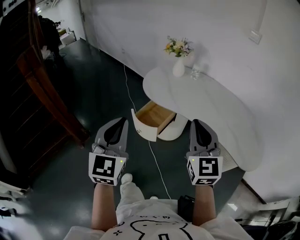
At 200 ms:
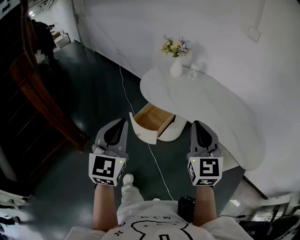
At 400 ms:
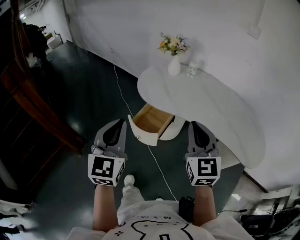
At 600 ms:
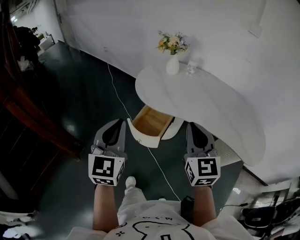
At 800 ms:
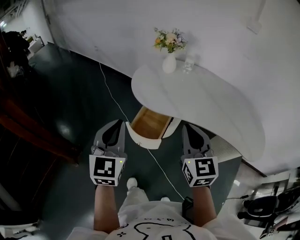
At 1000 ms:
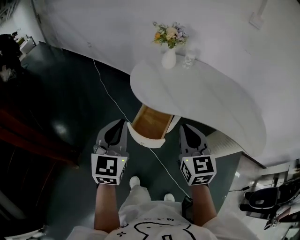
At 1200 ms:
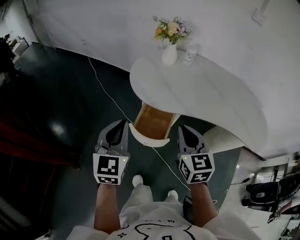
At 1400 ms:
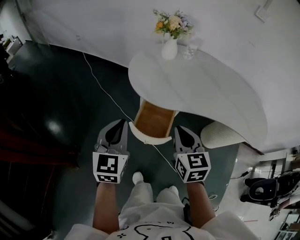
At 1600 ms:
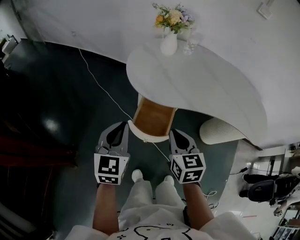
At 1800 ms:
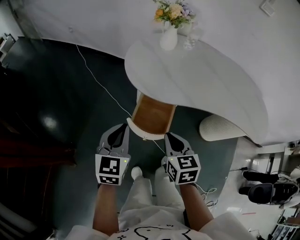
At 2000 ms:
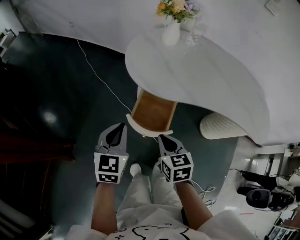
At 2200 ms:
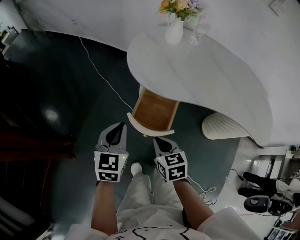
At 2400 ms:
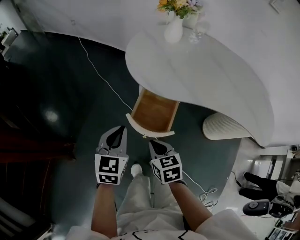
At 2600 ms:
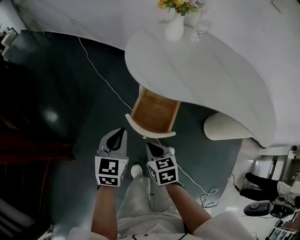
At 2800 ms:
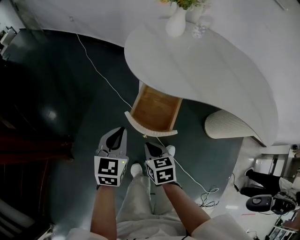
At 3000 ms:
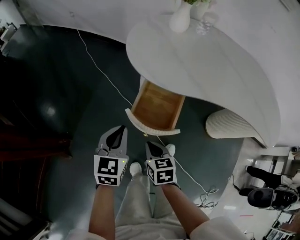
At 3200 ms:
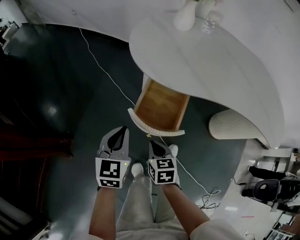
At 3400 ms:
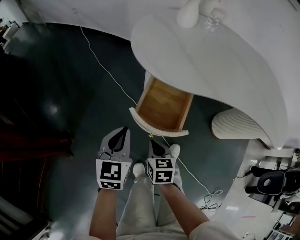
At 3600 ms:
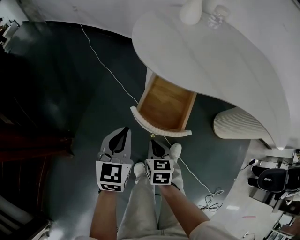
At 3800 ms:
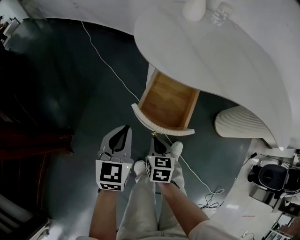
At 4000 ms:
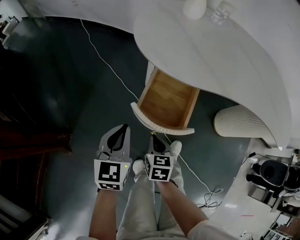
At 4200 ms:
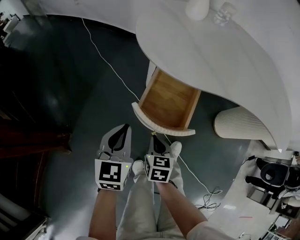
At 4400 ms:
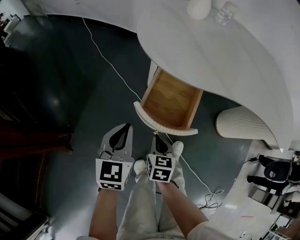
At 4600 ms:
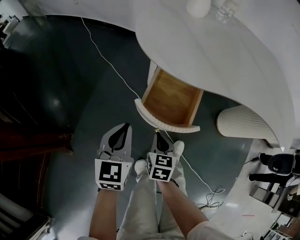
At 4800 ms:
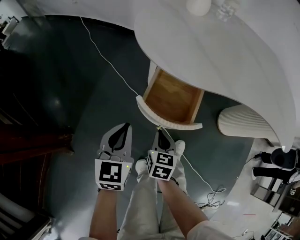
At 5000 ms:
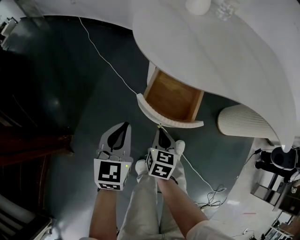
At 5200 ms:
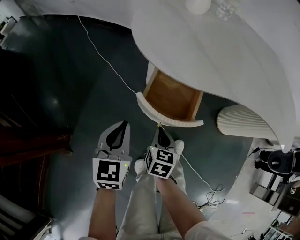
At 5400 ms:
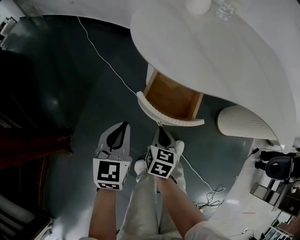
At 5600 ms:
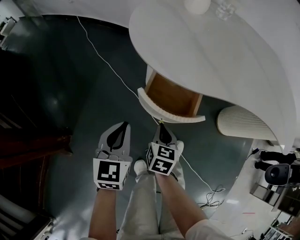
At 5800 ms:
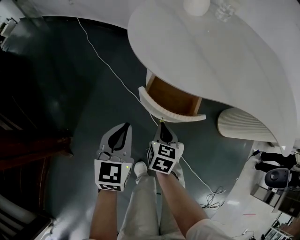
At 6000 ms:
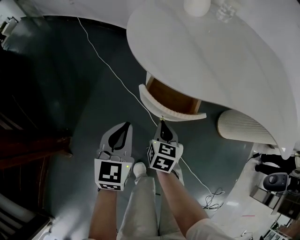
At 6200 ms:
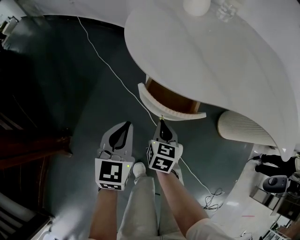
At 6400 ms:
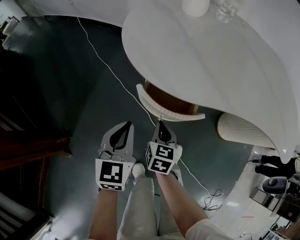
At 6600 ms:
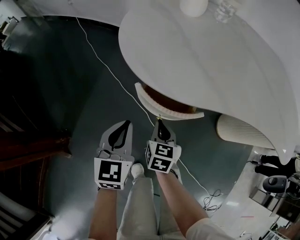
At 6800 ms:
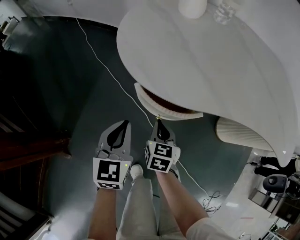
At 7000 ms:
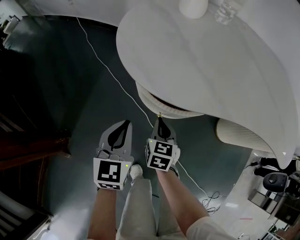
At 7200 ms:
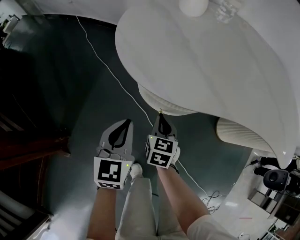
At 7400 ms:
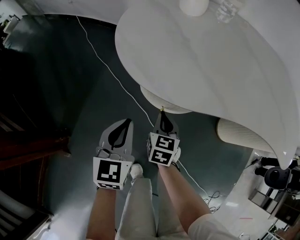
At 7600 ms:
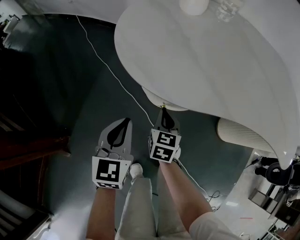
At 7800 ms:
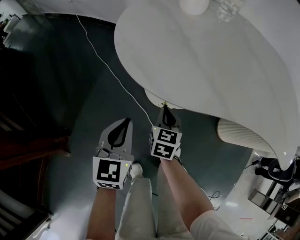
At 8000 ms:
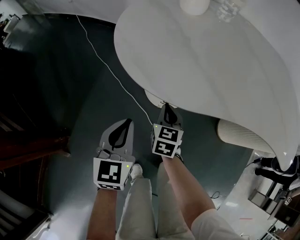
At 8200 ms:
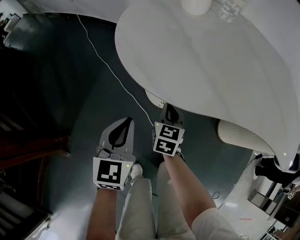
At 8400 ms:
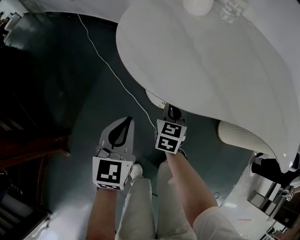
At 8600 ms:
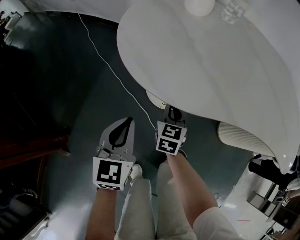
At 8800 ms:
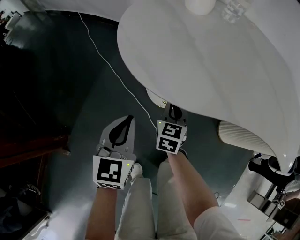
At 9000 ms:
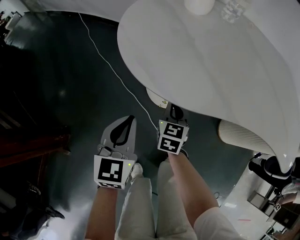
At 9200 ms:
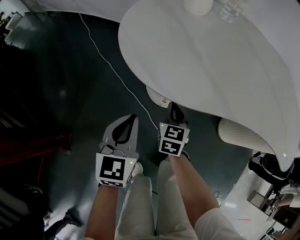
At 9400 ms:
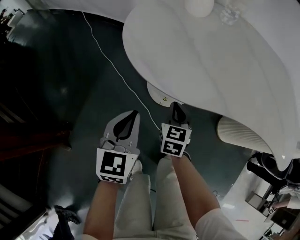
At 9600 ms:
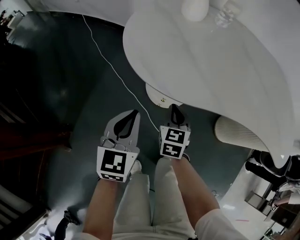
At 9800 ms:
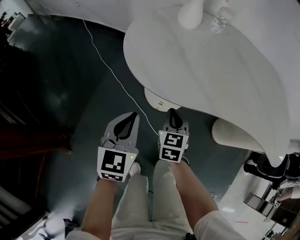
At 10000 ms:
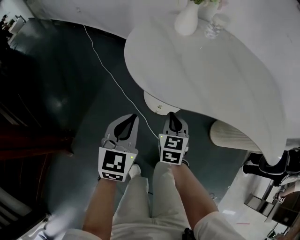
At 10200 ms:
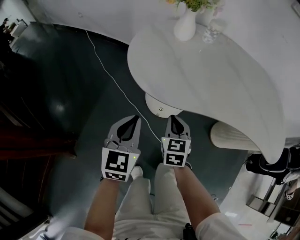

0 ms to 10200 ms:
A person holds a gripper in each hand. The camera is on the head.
0 ms to 1400 ms: The right gripper shifts some 30 cm to the left, forward and downward, and swivels about 30 degrees. The left gripper travels forward, to the left and downward by about 35 cm, and changes its angle by roughly 30 degrees.
1400 ms to 3000 ms: Both grippers travel together downward, about 25 cm. The right gripper turns by roughly 30 degrees.
3000 ms to 4400 ms: The right gripper goes roughly 10 cm downward, while the left gripper is displaced downward by about 5 cm.
4400 ms to 5800 ms: The right gripper moves forward, about 10 cm.
5800 ms to 7200 ms: The two grippers go about 5 cm forward.
7200 ms to 8800 ms: The right gripper is displaced forward by about 5 cm.
8800 ms to 10200 ms: The right gripper is displaced upward and backward by about 15 cm. Meanwhile the left gripper goes approximately 10 cm upward.

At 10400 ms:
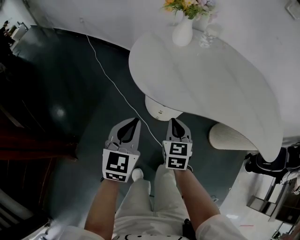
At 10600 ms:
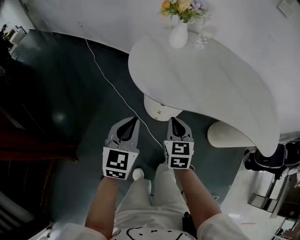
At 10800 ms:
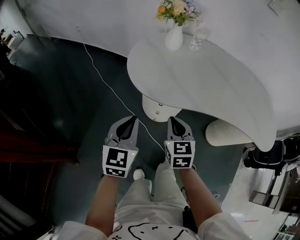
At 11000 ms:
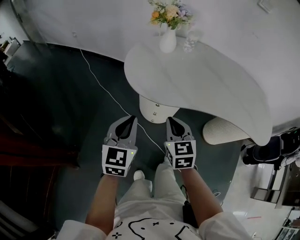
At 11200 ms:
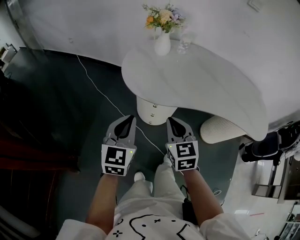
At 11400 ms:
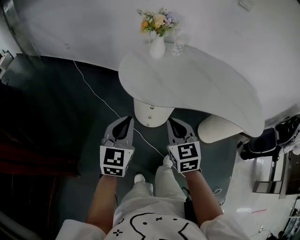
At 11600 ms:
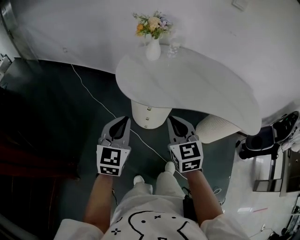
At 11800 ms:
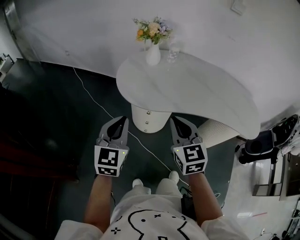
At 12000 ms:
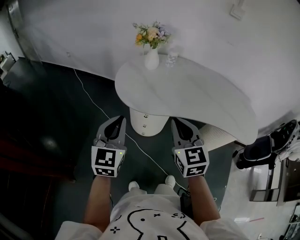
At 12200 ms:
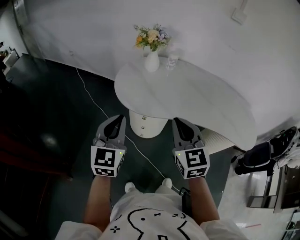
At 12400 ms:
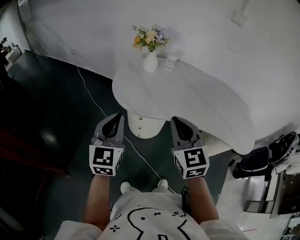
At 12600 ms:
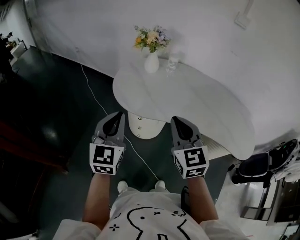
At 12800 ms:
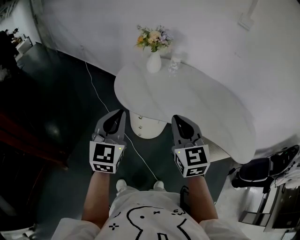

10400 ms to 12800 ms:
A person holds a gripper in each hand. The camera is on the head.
10400 ms to 11600 ms: The left gripper shifts some 10 cm upward and backward. Meanwhile the right gripper goes about 20 cm upward and backward.
11600 ms to 12800 ms: Both grippers move to the right and upward, approximately 15 cm.

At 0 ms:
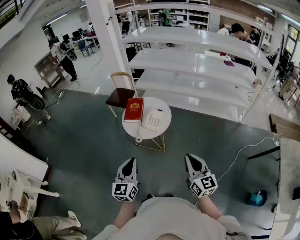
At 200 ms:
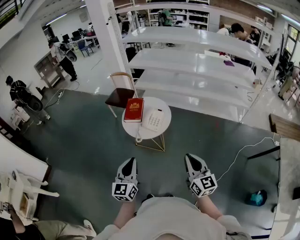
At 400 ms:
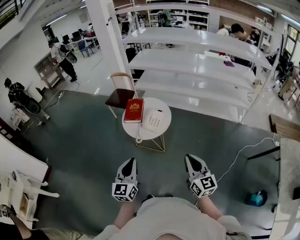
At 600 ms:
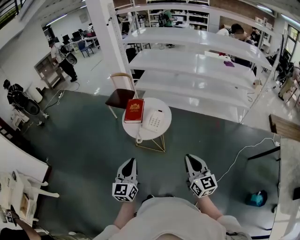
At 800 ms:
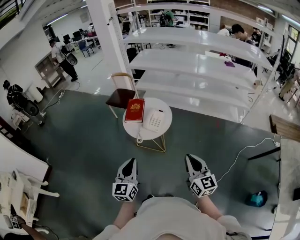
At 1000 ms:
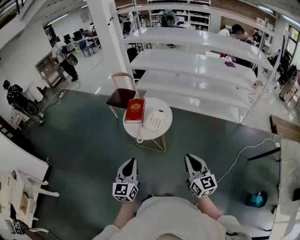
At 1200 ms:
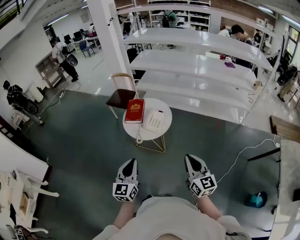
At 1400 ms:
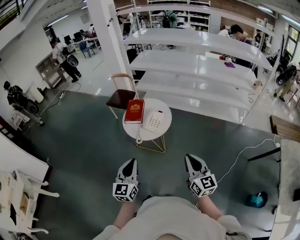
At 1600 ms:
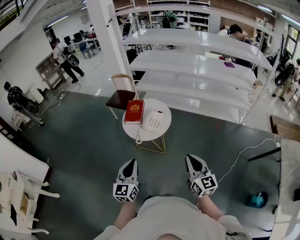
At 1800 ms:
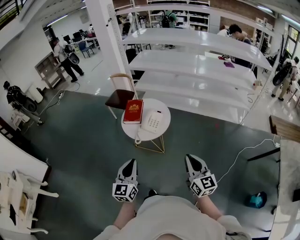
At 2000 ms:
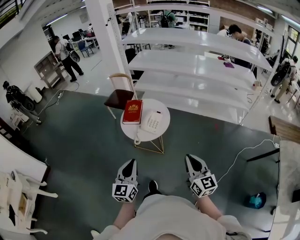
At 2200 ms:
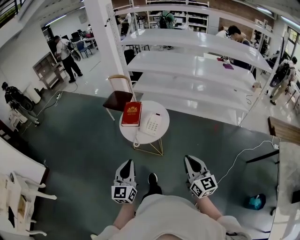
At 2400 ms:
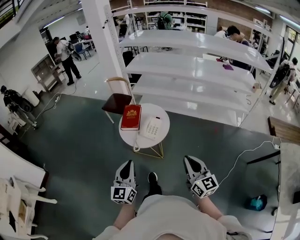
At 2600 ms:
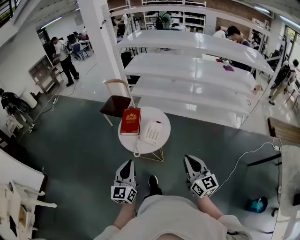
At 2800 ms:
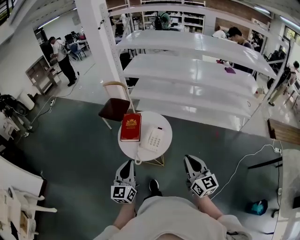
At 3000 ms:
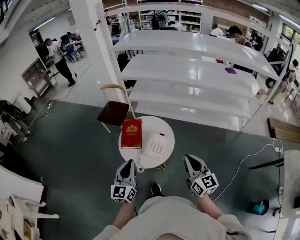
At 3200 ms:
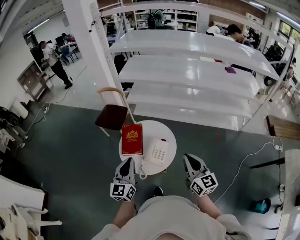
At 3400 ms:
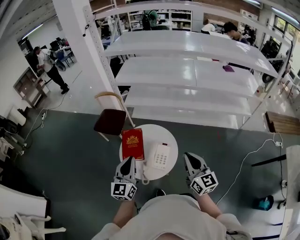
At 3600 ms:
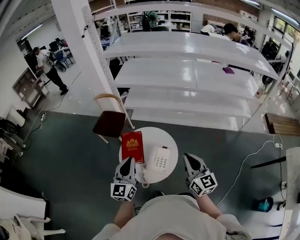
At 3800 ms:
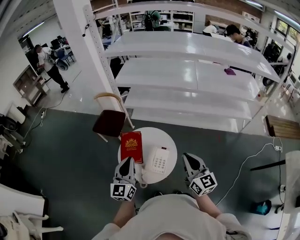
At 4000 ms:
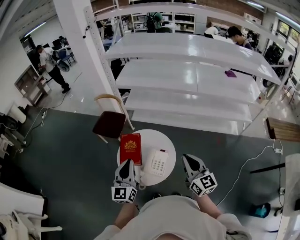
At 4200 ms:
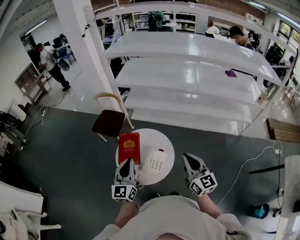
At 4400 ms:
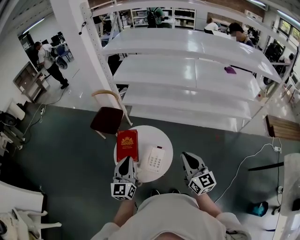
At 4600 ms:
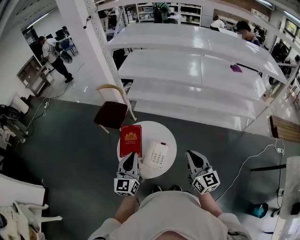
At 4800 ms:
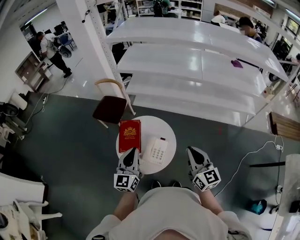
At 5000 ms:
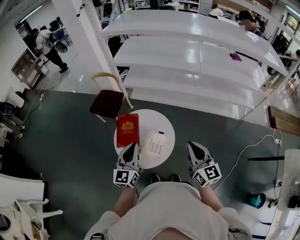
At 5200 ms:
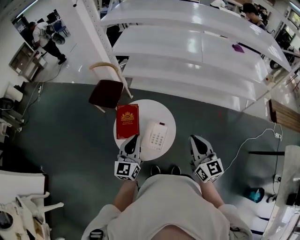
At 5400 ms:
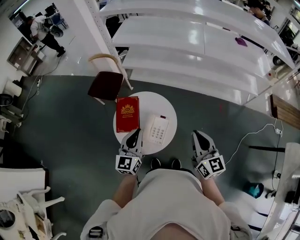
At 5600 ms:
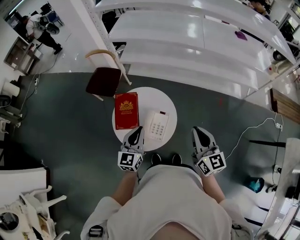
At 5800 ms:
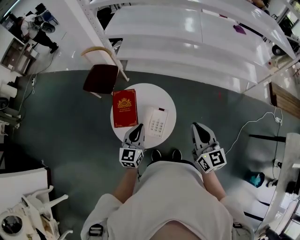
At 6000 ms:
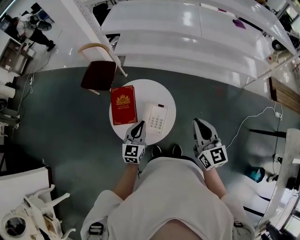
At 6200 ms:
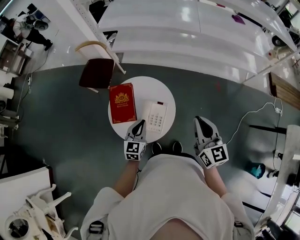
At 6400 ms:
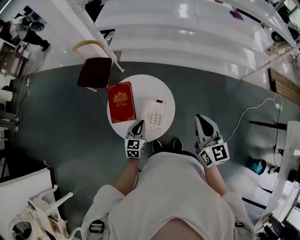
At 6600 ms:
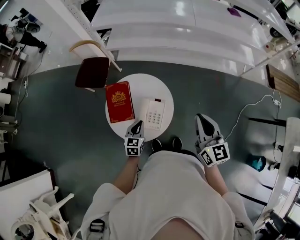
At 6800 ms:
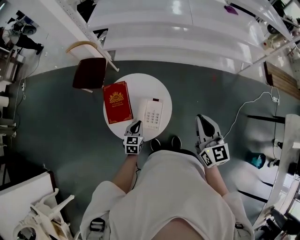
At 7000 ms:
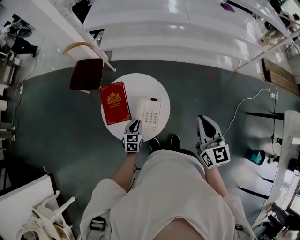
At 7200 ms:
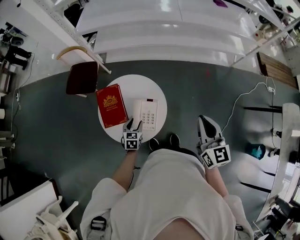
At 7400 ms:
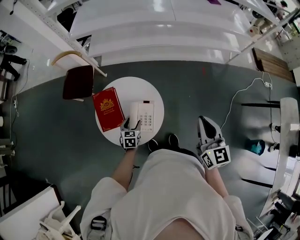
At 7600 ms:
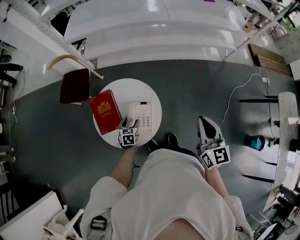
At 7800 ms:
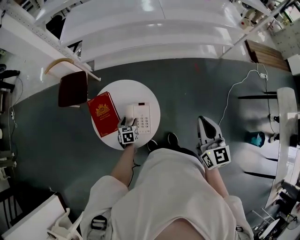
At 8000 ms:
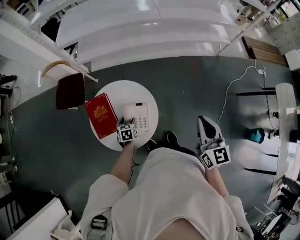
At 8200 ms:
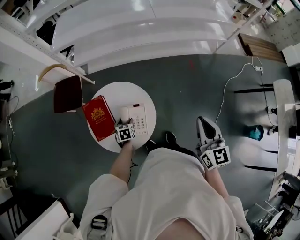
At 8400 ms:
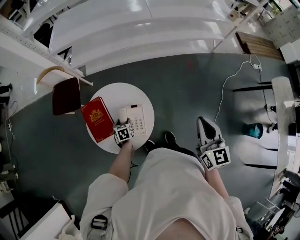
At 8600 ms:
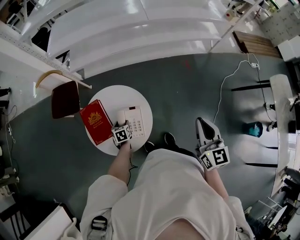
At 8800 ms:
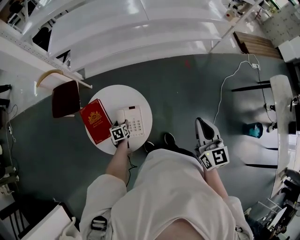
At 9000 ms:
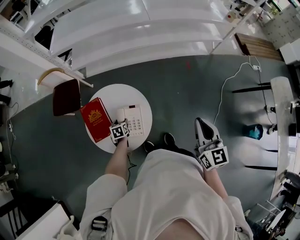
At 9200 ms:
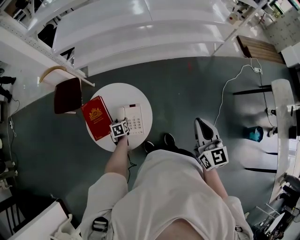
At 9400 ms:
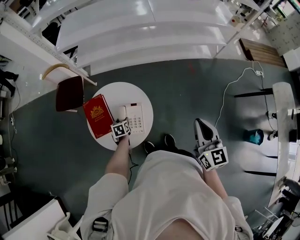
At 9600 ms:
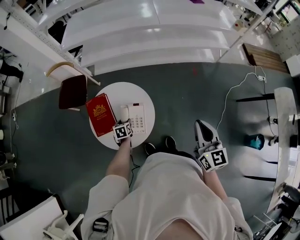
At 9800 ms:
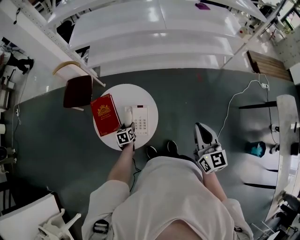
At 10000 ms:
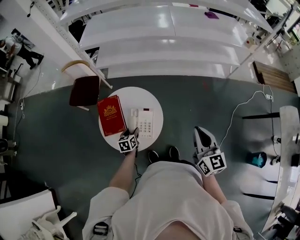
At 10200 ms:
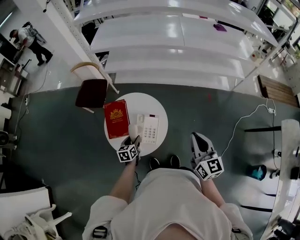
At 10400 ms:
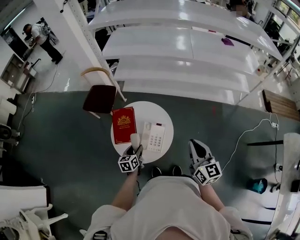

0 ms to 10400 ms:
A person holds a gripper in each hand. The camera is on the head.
0 ms to 1400 ms: Neither gripper changes place.
1400 ms to 3000 ms: The grippers both shift forward by roughly 25 cm.
3000 ms to 4400 ms: Both grippers move forward, roughly 15 cm.
4400 ms to 6000 ms: The left gripper shifts some 15 cm downward, and rotates roughly 20 degrees.
6000 ms to 7400 ms: The left gripper is displaced downward by roughly 20 cm, turns by roughly 30 degrees, and opens its fingers. The right gripper heads to the right, covering some 5 cm.
7400 ms to 9000 ms: The right gripper heads to the right, covering some 5 cm; the left gripper goes approximately 5 cm downward.
9000 ms to 10400 ms: The left gripper goes roughly 15 cm upward and backward, and rotates about 30 degrees. Meanwhile the right gripper is displaced to the left by roughly 10 cm, and changes its angle by roughly 20 degrees.
